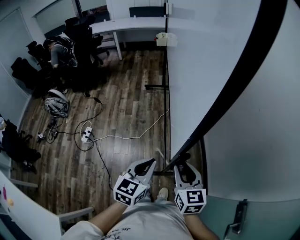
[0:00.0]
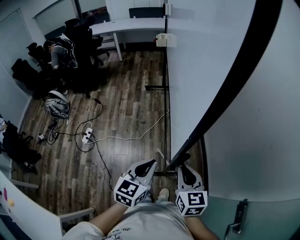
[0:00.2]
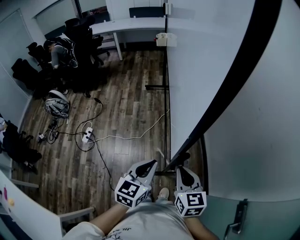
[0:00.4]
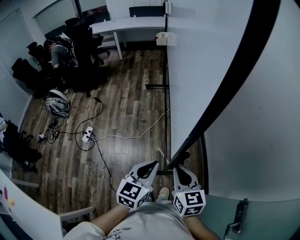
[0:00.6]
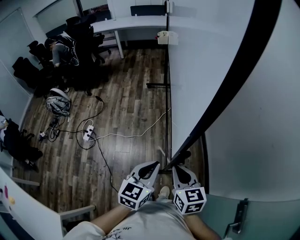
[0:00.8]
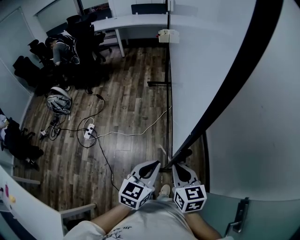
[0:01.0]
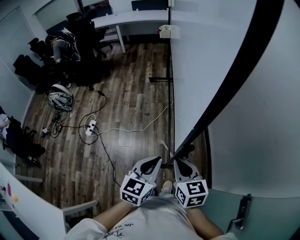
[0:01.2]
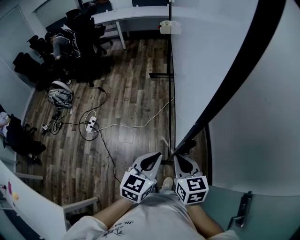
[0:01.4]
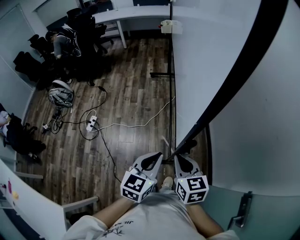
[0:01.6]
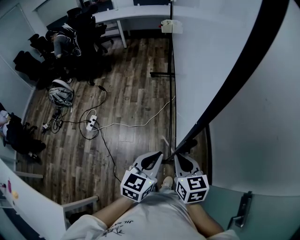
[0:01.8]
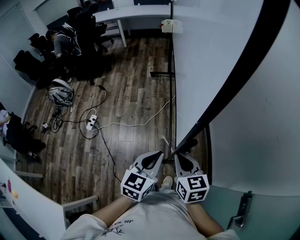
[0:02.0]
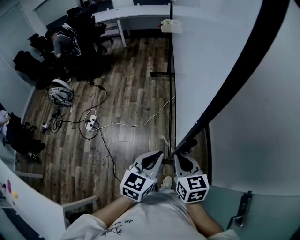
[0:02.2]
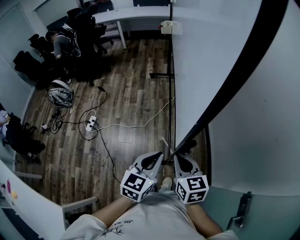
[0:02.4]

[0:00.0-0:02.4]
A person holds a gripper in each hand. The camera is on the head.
0:00.0 to 0:01.2: The right gripper closes its fingers.
0:01.2 to 0:02.4: Neither gripper changes place.

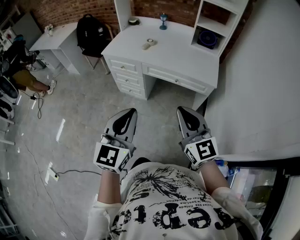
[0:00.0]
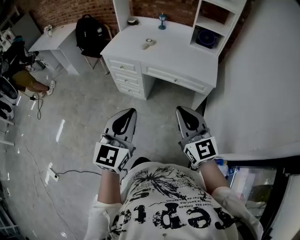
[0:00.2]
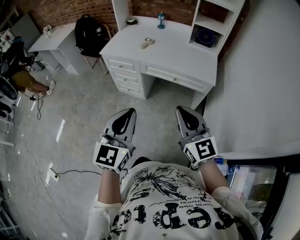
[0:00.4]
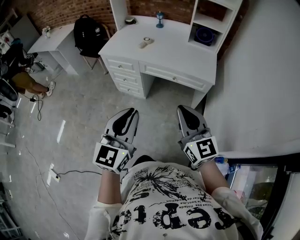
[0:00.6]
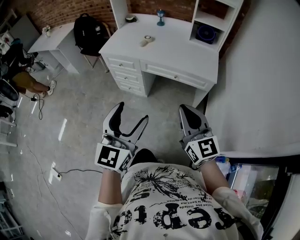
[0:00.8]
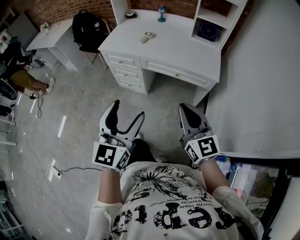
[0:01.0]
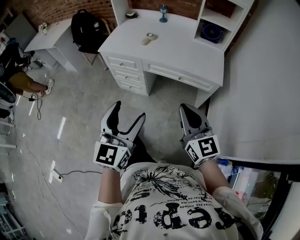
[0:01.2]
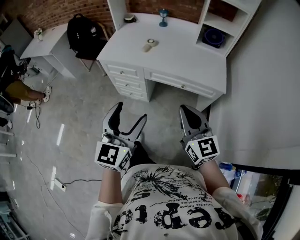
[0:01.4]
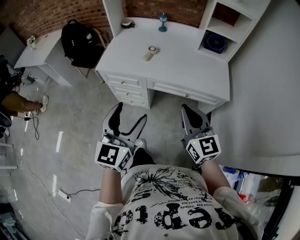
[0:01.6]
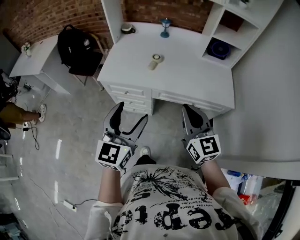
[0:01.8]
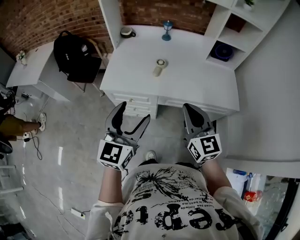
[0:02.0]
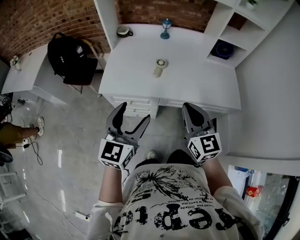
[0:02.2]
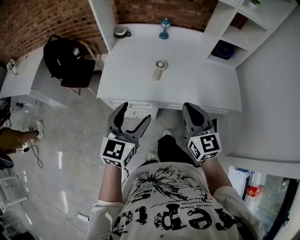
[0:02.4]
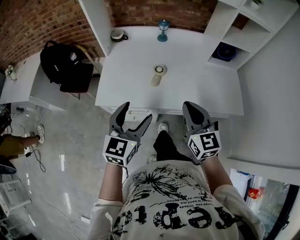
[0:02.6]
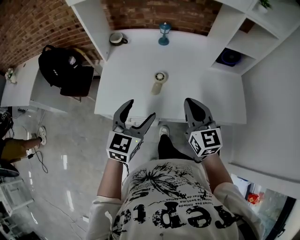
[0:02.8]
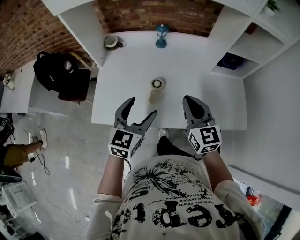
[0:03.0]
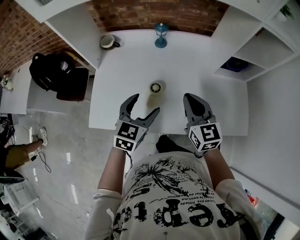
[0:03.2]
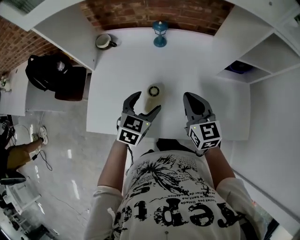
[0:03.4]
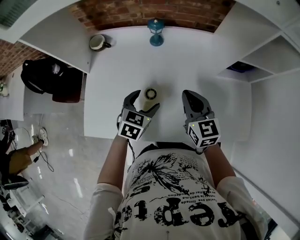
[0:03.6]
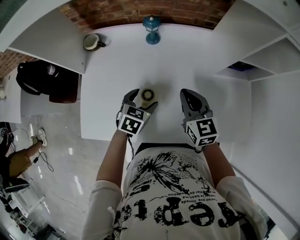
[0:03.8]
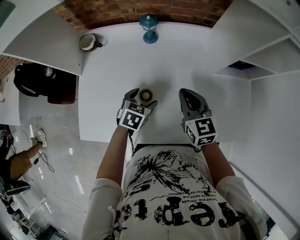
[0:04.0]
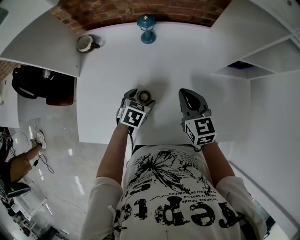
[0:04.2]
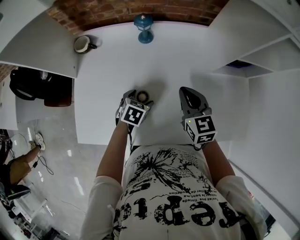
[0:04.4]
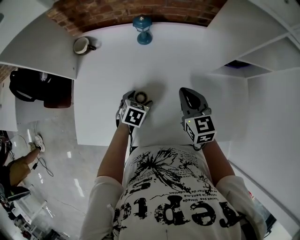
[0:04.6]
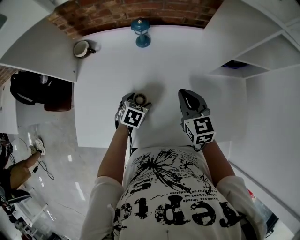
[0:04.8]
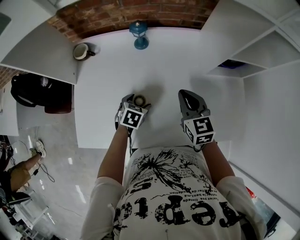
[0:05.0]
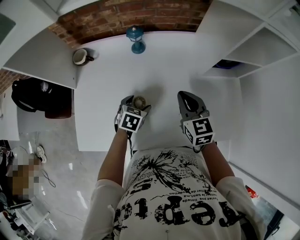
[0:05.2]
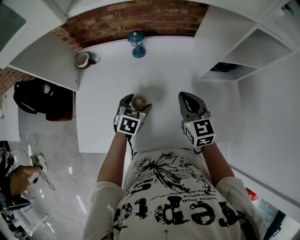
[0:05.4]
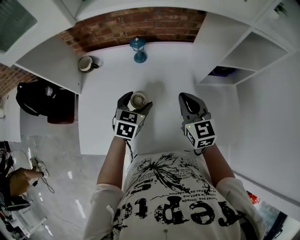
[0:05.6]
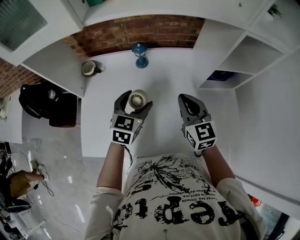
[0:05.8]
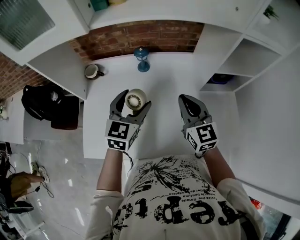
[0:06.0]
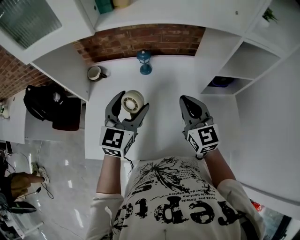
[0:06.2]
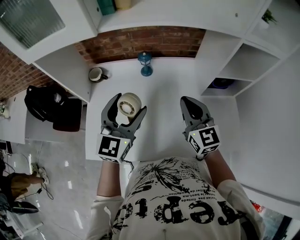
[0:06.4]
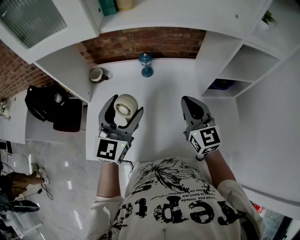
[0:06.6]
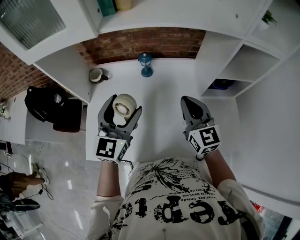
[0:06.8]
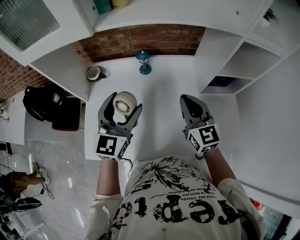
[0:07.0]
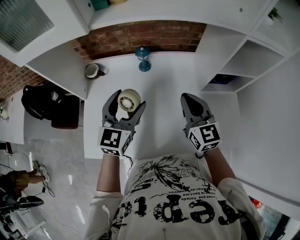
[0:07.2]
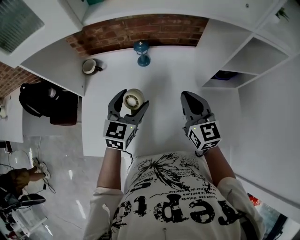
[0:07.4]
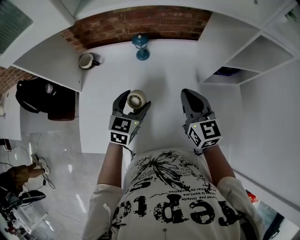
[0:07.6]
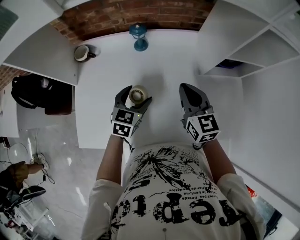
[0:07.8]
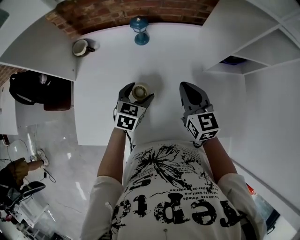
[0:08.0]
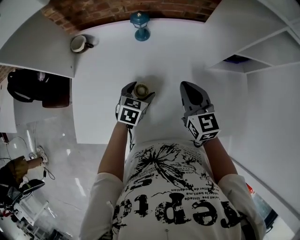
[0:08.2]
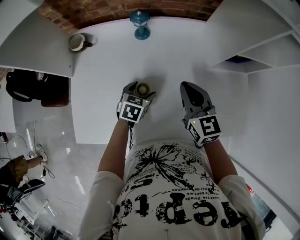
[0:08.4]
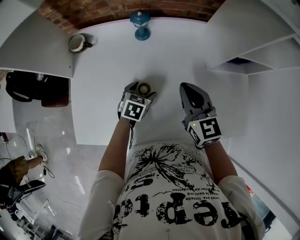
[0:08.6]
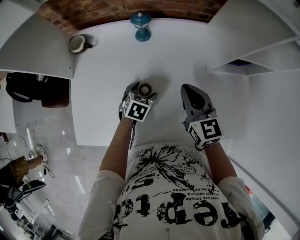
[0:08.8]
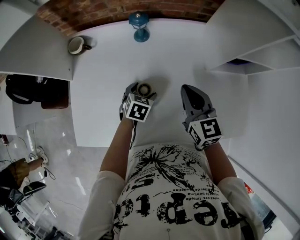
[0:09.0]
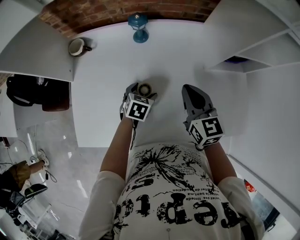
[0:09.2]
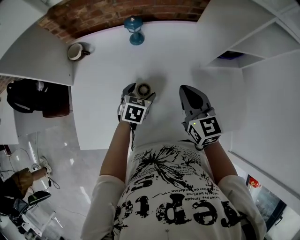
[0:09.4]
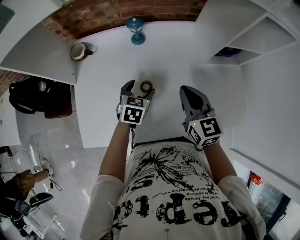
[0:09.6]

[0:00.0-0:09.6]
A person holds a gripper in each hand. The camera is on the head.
0:00.0 to 0:01.6: The grippers both shift forward by approximately 25 cm. The left gripper opens its fingers.
0:01.6 to 0:03.2: The two grippers travel together, forward, approximately 50 cm. The left gripper turns by about 30 degrees.
0:03.2 to 0:04.8: The left gripper is displaced downward and forward by some 25 cm, and tips its fingers downward by approximately 30 degrees. Meanwhile the right gripper is displaced forward and downward by roughly 15 cm.
0:04.8 to 0:06.4: The right gripper heads upward, covering approximately 15 cm, and turns by some 20 degrees. Meanwhile the left gripper travels upward by about 35 cm, and tips its fingers upward by some 50 degrees.
0:06.4 to 0:08.0: The right gripper heads downward, covering about 10 cm. Meanwhile the left gripper shifts some 25 cm downward, and angles its fingers downward, by some 40 degrees.
0:08.0 to 0:09.6: The left gripper travels downward and back again, about 10 cm each way. The right gripper ends up approximately 5 cm from where it was.

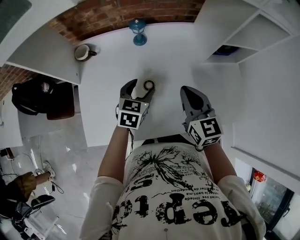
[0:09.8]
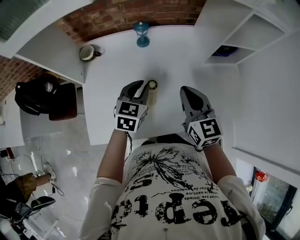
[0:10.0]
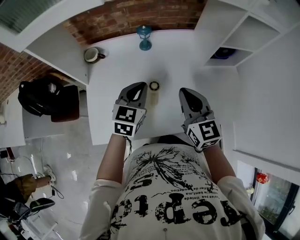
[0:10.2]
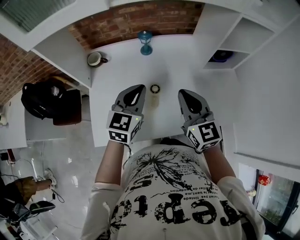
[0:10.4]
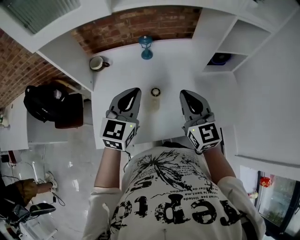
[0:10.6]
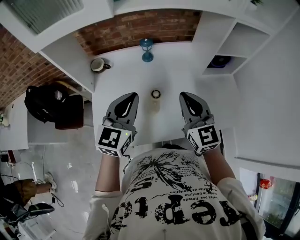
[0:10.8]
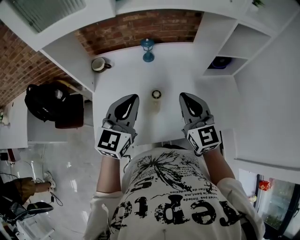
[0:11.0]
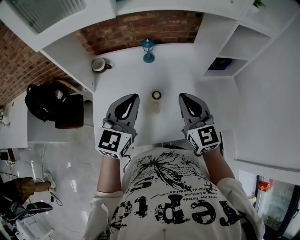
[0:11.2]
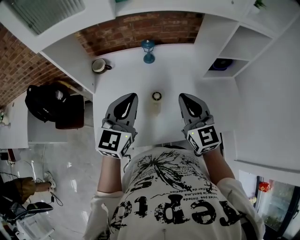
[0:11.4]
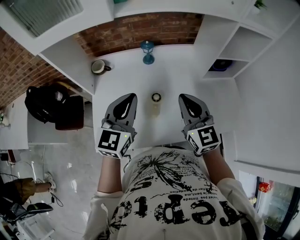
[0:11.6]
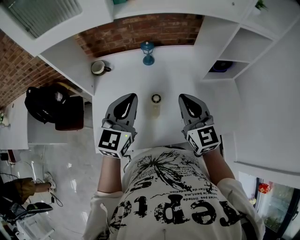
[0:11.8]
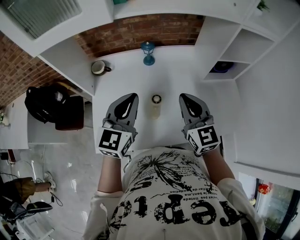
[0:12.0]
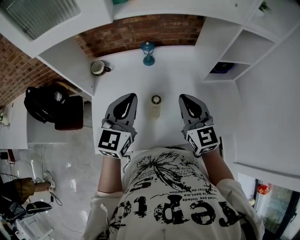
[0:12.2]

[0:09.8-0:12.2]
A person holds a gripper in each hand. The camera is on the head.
0:09.8 to 0:11.0: The left gripper shifts some 25 cm upward and backward, swivels about 30 degrees, and closes. The right gripper is displaced upward and backward by some 10 cm.
0:11.0 to 0:12.2: There are only small adjustments of the grippers.

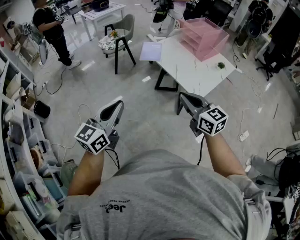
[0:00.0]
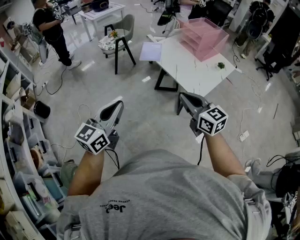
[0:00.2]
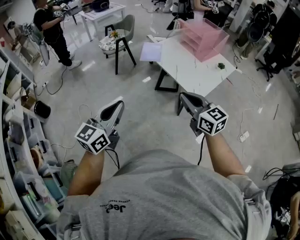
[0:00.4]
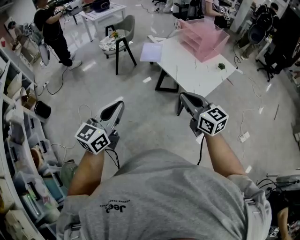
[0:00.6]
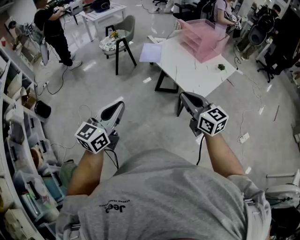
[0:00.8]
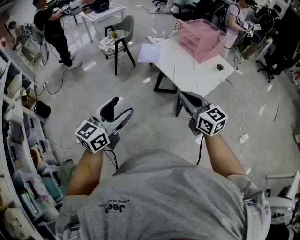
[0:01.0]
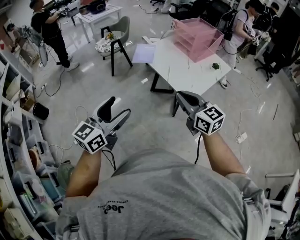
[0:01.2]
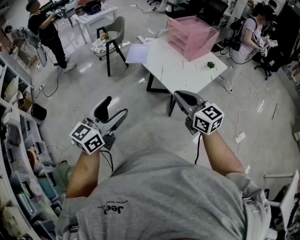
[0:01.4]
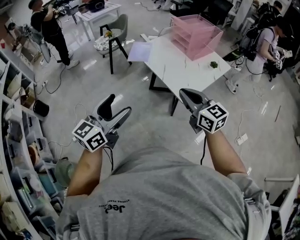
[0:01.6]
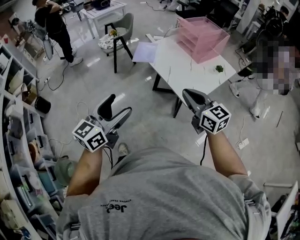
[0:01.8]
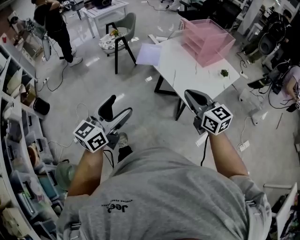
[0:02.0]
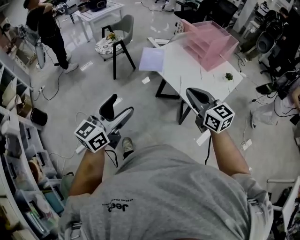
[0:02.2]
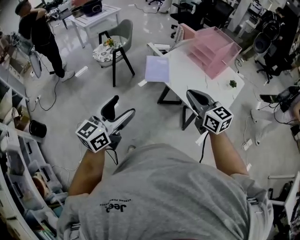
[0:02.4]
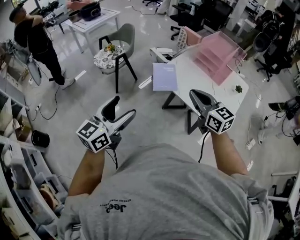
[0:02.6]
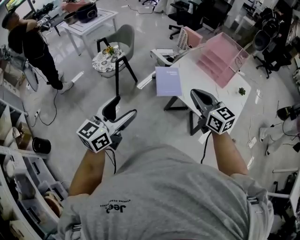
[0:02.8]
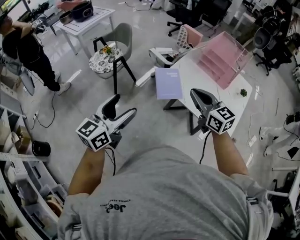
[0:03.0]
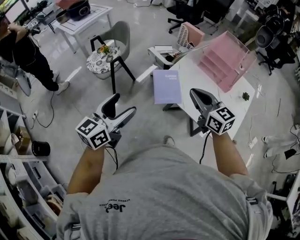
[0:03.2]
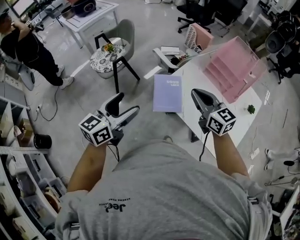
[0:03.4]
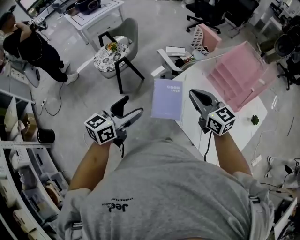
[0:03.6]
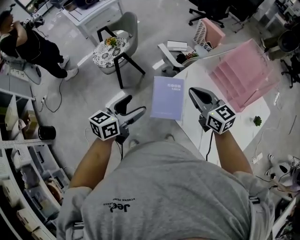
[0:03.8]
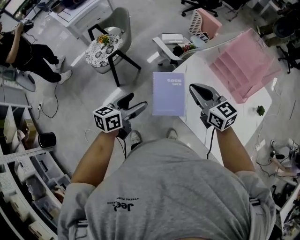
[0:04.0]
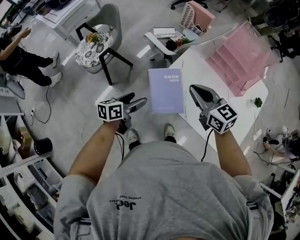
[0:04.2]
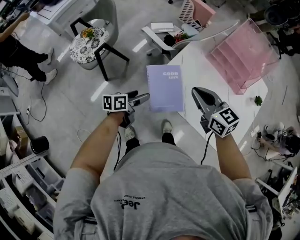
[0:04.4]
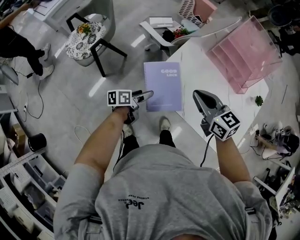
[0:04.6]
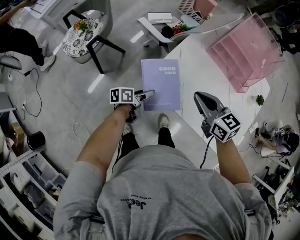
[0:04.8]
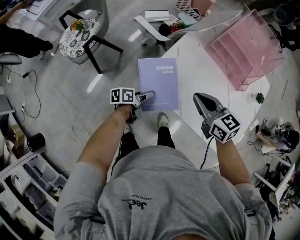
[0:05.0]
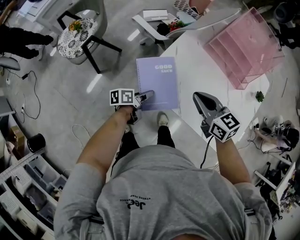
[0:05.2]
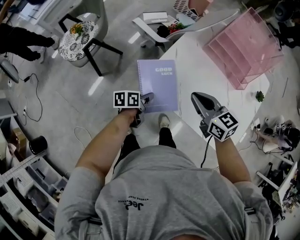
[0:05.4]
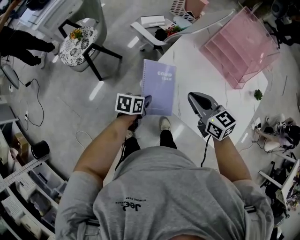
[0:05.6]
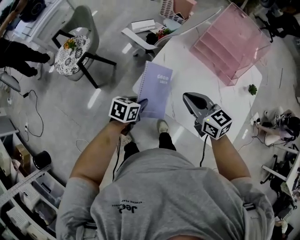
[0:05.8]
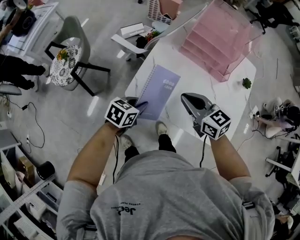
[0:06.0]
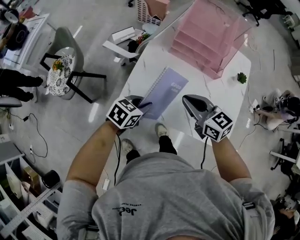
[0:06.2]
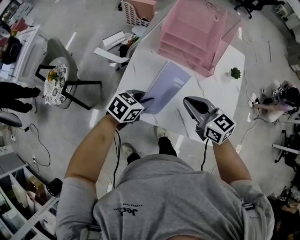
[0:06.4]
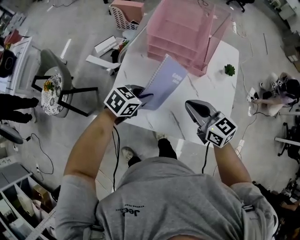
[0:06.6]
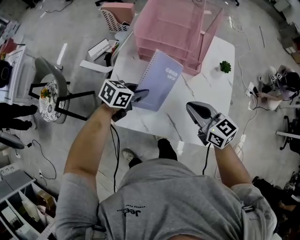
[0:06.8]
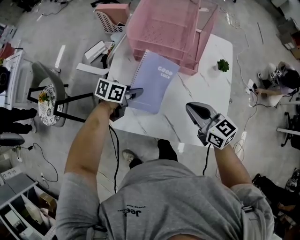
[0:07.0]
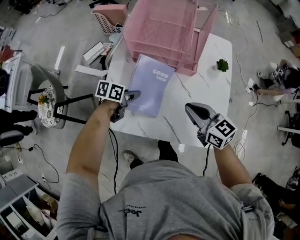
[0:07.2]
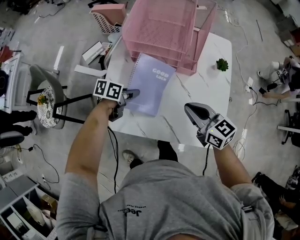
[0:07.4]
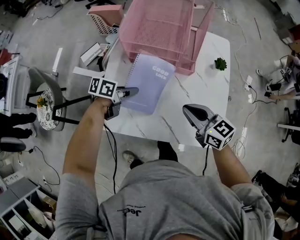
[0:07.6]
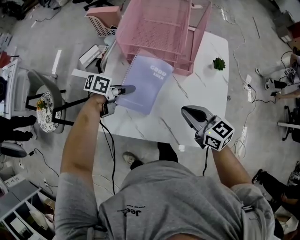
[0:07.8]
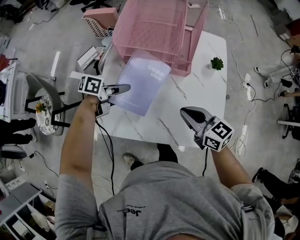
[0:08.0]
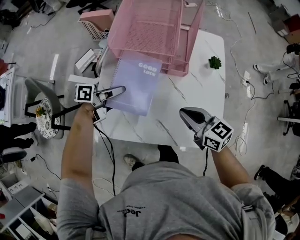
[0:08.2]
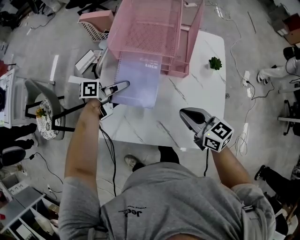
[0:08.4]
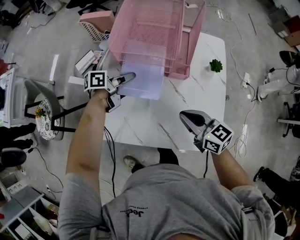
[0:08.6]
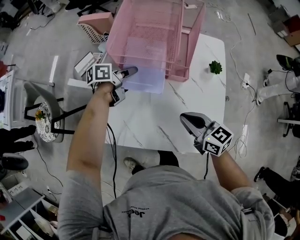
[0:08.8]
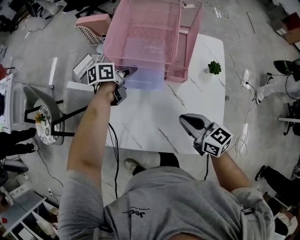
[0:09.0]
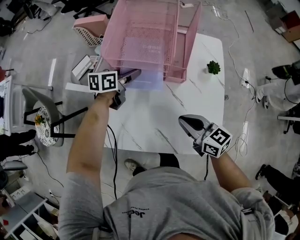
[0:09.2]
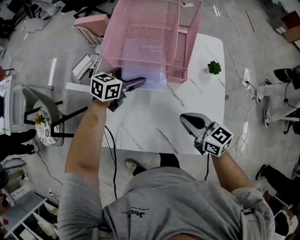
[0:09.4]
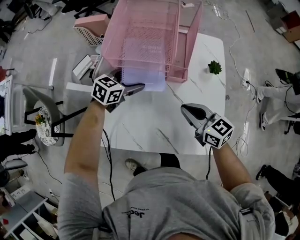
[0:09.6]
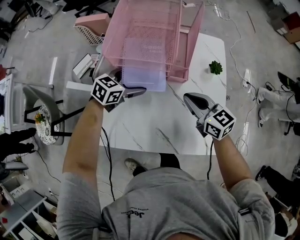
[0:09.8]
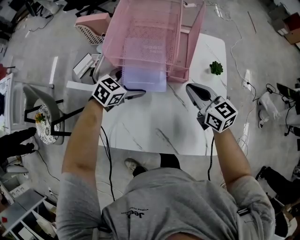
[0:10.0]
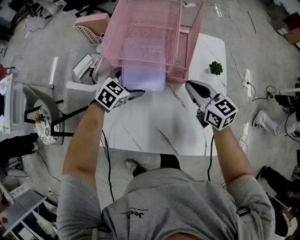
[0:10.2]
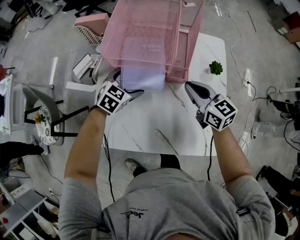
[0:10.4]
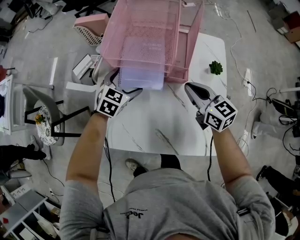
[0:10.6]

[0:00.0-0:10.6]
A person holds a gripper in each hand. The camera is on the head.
0:00.0 to 0:01.6: The grippers both shift to the right by some 15 cm. The left gripper opens.
0:01.6 to 0:03.0: The two grippers travel together, forward and to the left, roughly 50 cm.
0:03.0 to 0:04.6: The right gripper moves forward and downward, some 25 cm, while the left gripper shifts approximately 50 cm downward and forward, and twists approximately 50 degrees counterclockwise, seen from behind.
0:04.6 to 0:06.0: The right gripper goes about 5 cm to the right. The left gripper goes some 15 cm to the right and upward, rolls clockwise, seen from behind, by approximately 50 degrees, and closes up.
0:06.0 to 0:07.6: The right gripper is displaced to the right by some 20 cm. The left gripper heads forward and to the right, covering some 20 cm, and rotates approximately 30 degrees.
0:07.6 to 0:09.0: The left gripper travels forward by roughly 15 cm.
0:09.0 to 0:10.6: The right gripper is displaced forward by roughly 10 cm; the left gripper rolls clockwise, seen from behind, by some 60 degrees, and opens its fingers.
